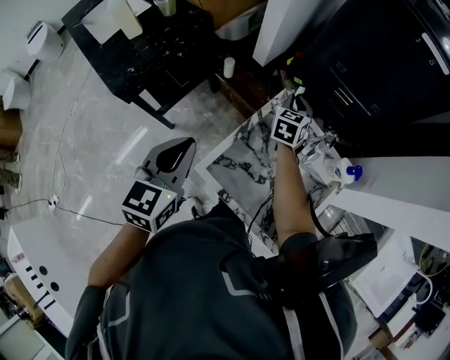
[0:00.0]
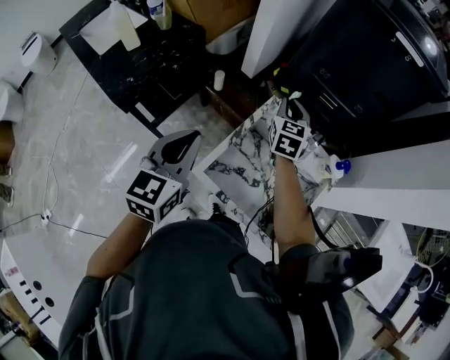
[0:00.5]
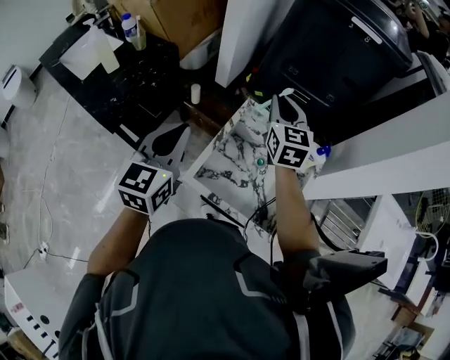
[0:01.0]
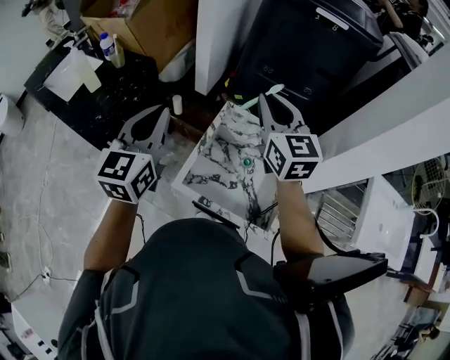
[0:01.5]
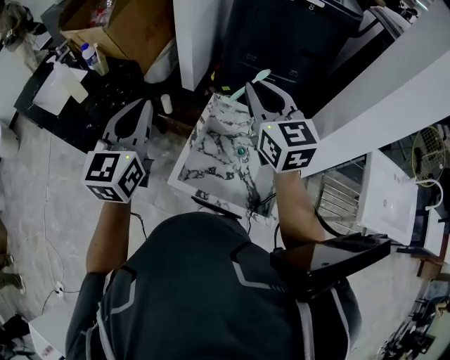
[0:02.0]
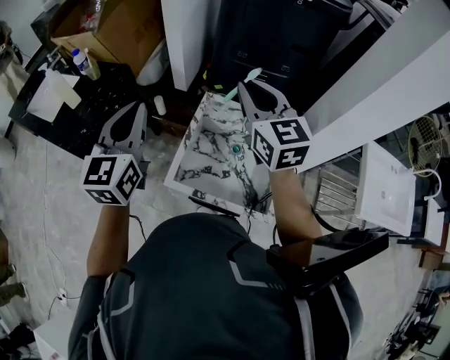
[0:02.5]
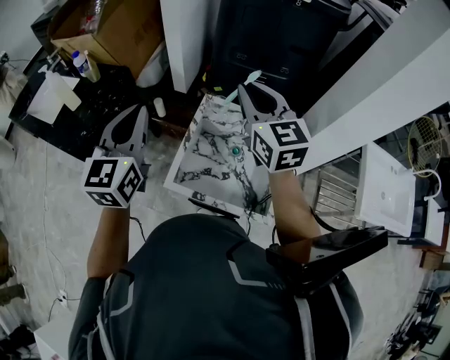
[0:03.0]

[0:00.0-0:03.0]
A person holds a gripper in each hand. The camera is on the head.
0:00.0 to 0:01.5: The left gripper shifts approximately 15 cm upward, and turns by some 20 degrees. Meanwhile the right gripper heads upward and backward, covering about 35 cm, and changes its angle by about 30 degrees.
0:01.5 to 0:03.0: There are only small adjustments of the grippers.

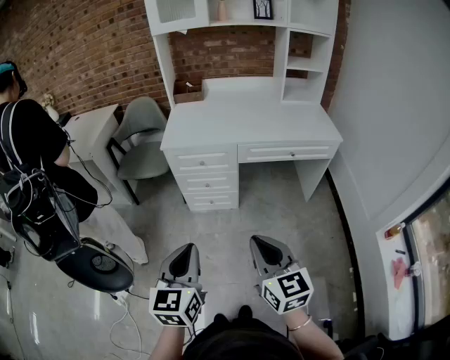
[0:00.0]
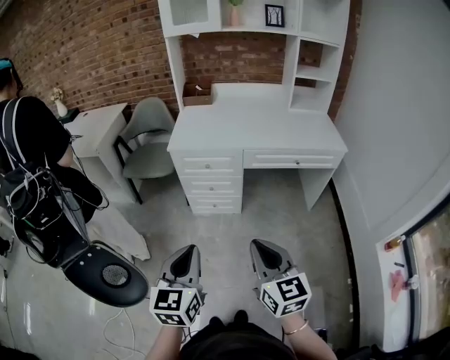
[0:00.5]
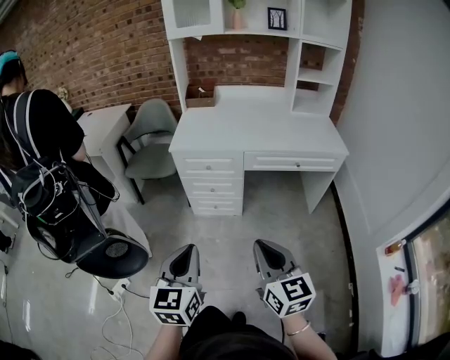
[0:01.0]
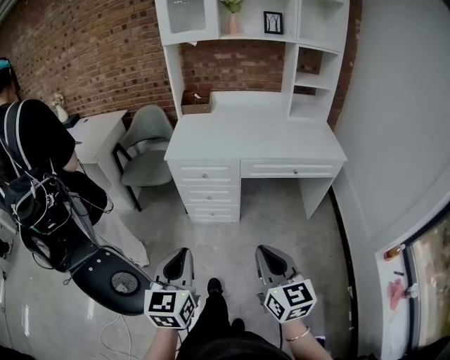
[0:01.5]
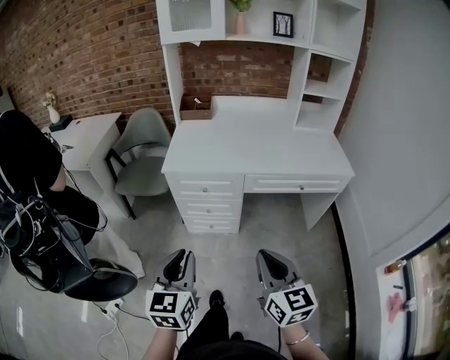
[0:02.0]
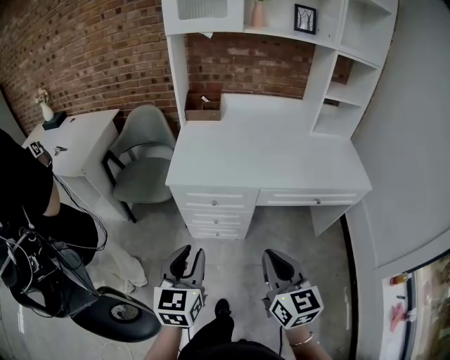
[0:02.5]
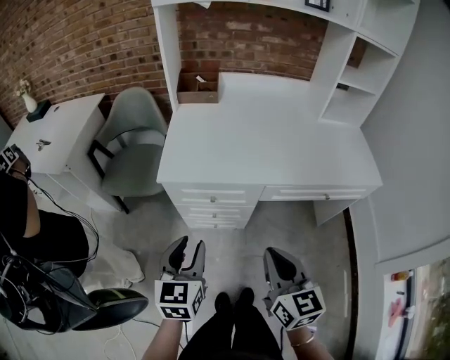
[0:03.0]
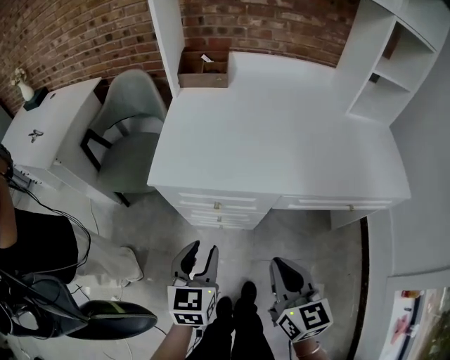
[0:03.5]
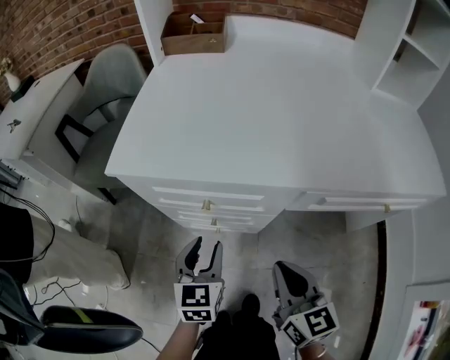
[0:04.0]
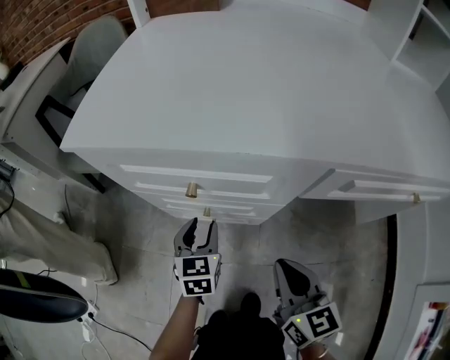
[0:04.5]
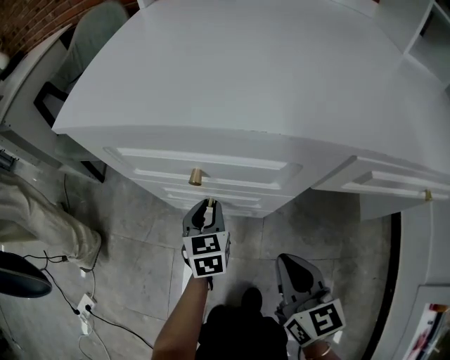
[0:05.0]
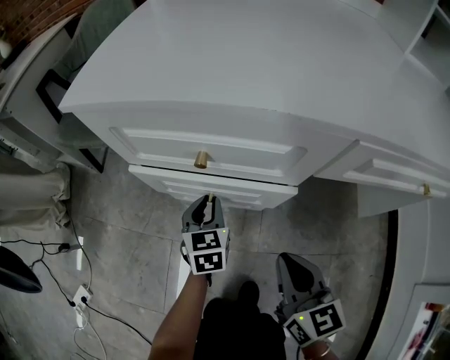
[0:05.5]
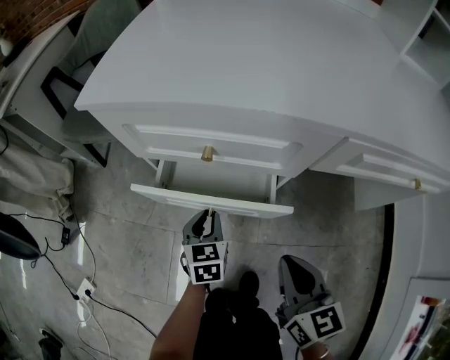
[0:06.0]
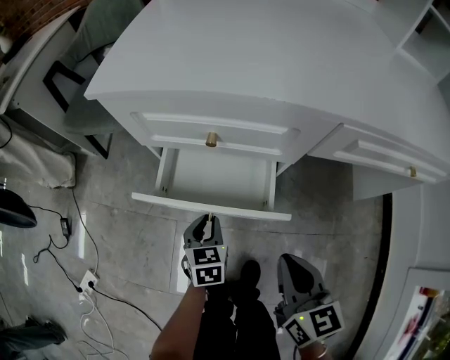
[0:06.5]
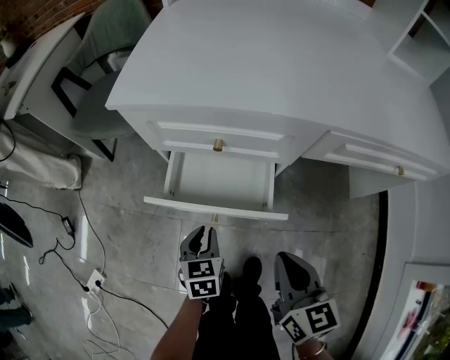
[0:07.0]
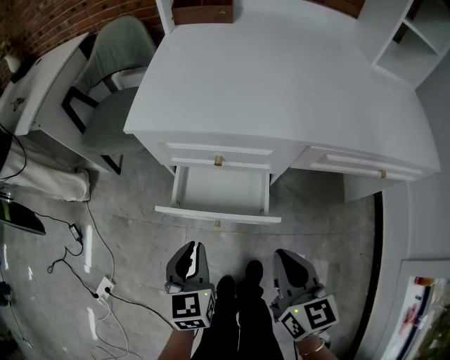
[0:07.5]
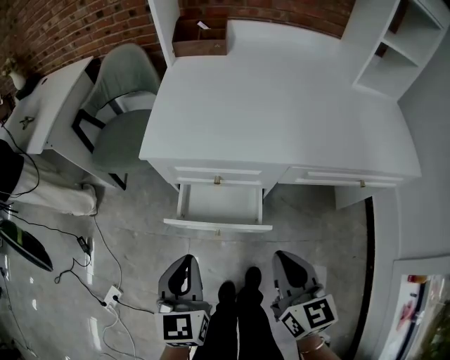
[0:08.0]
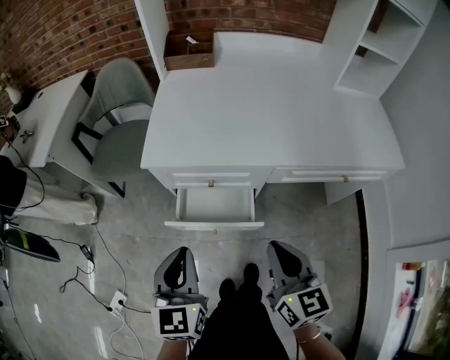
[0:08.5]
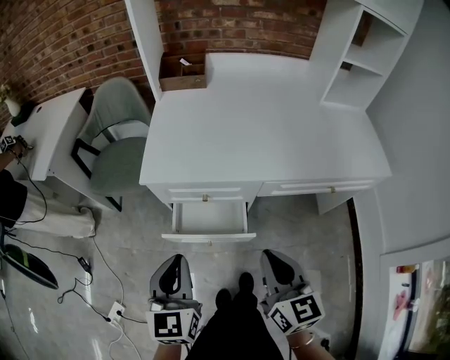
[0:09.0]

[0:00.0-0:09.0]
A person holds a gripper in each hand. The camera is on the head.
0:00.0 to 0:02.0: Both grippers move forward, about 10 cm.
0:02.0 to 0:04.5: Both grippers move downward and forward, roughly 60 cm. The left gripper opens.
0:04.5 to 0:07.0: The right gripper is displaced backward and upward by approximately 10 cm; the left gripper moves backward, approximately 15 cm.
0:07.0 to 0:09.0: The right gripper shifts about 25 cm upward; the left gripper is displaced upward by about 40 cm, and rotates roughly 30 degrees.

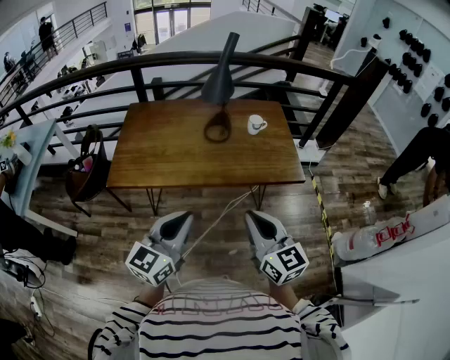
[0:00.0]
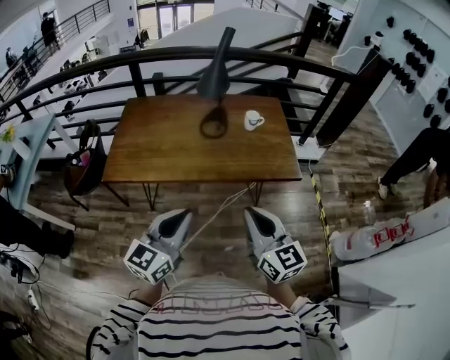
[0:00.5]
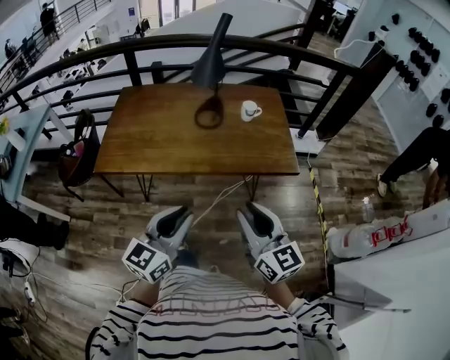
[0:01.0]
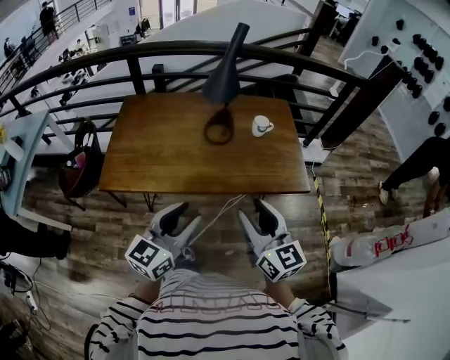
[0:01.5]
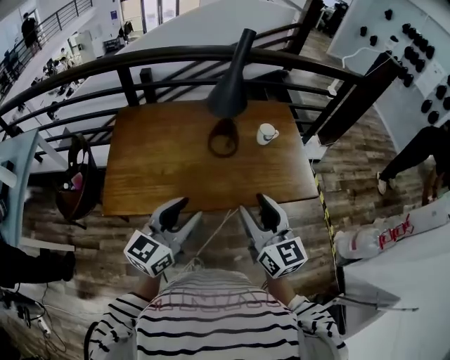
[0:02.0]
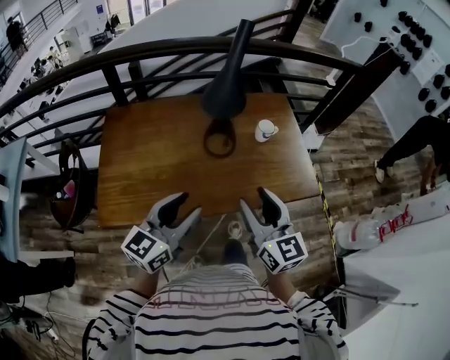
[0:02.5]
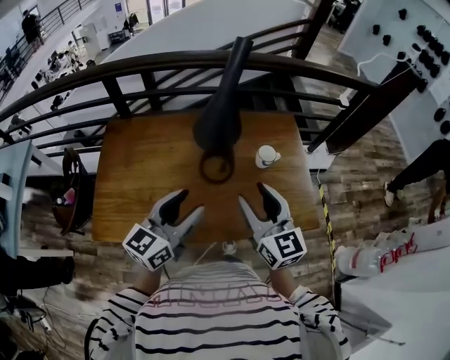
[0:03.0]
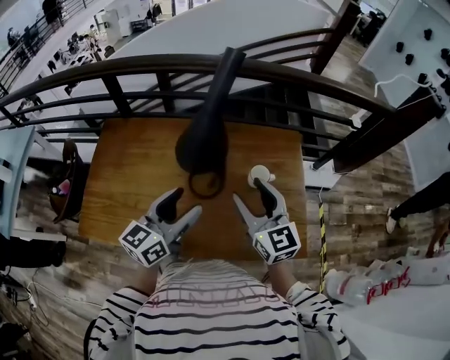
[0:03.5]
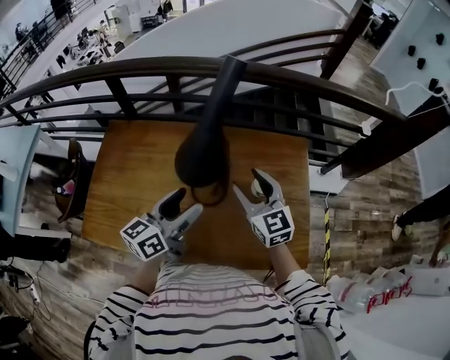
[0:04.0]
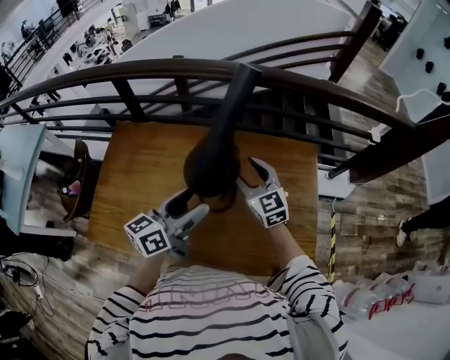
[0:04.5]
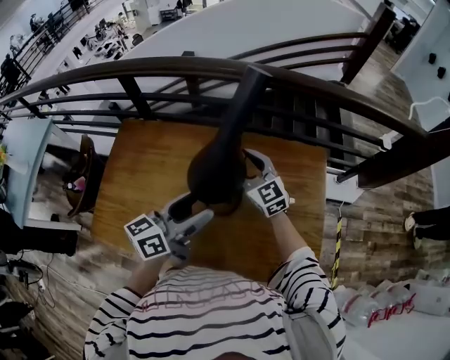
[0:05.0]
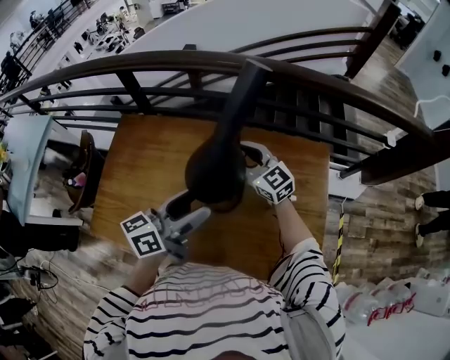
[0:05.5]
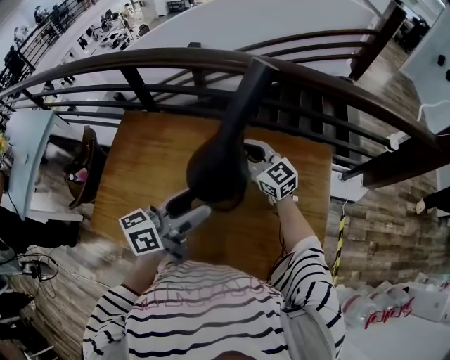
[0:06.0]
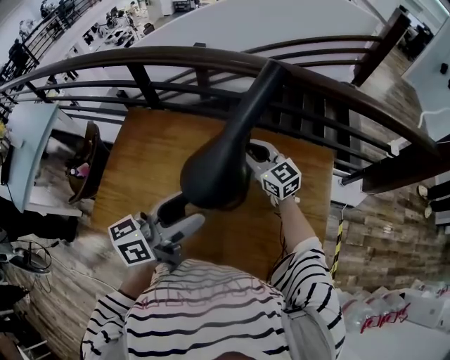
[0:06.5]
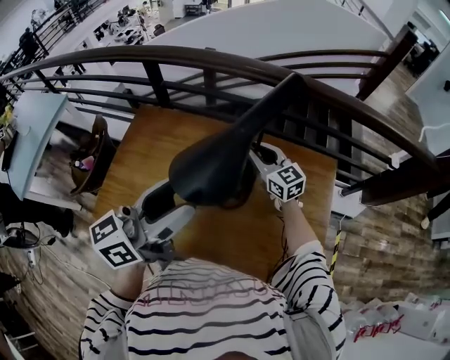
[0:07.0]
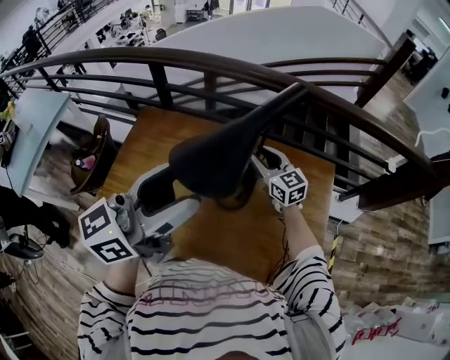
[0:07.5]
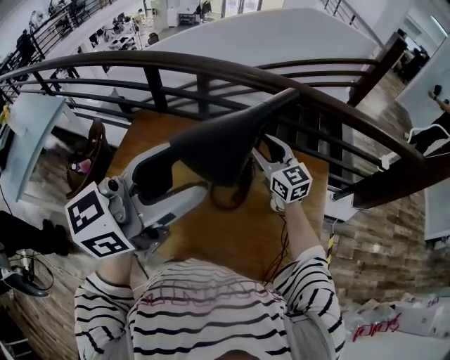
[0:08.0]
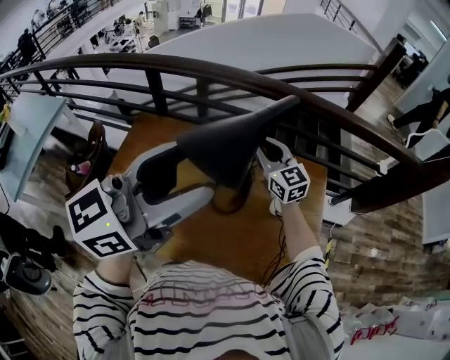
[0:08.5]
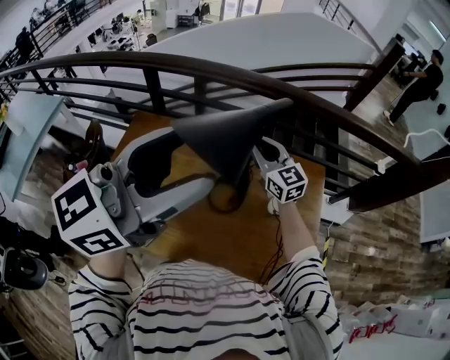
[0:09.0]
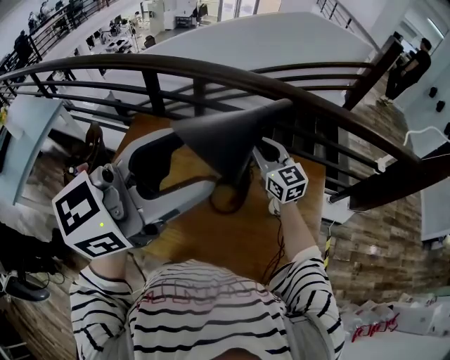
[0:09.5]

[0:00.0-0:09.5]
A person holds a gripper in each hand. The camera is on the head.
0:00.0 to 0:02.0: The left gripper moves forward, about 20 cm, and opens; the right gripper is displaced forward and to the left by about 25 cm, and opens.
0:02.0 to 0:04.0: The grippers both shift forward by roughly 40 cm. The left gripper rotates roughly 30 degrees, and opens up; the right gripper swivels roughly 20 degrees.
0:04.0 to 0:05.5: The left gripper travels forward by approximately 5 cm; the right gripper moves forward and to the left, some 15 cm, swivels roughly 20 degrees, and closes its fingers.
0:05.5 to 0:07.5: The left gripper goes some 20 cm upward and to the left, and rotates roughly 20 degrees.
0:07.5 to 0:09.5: The two grippers go some 10 cm upward.

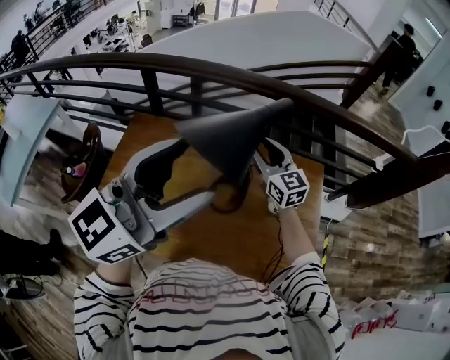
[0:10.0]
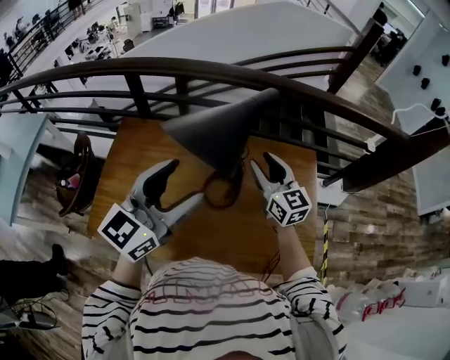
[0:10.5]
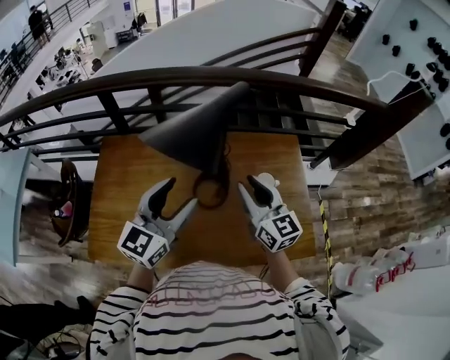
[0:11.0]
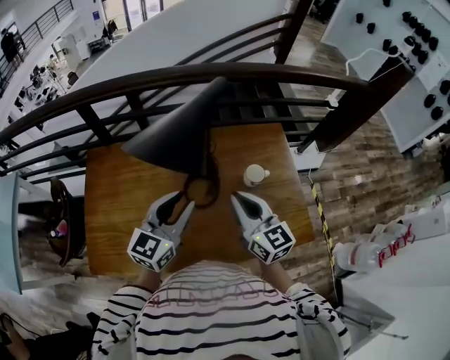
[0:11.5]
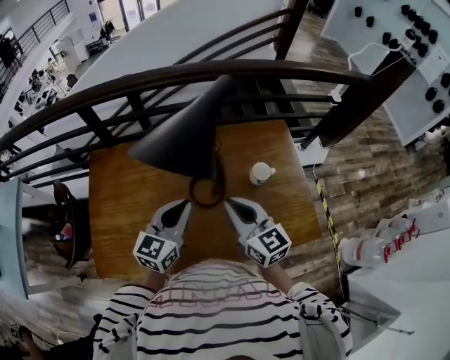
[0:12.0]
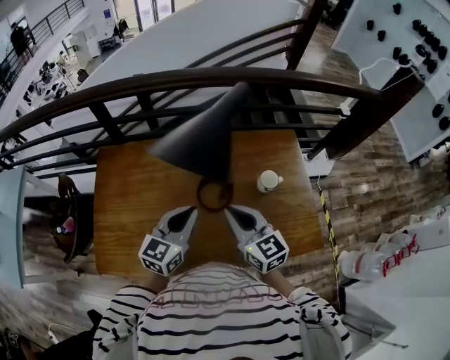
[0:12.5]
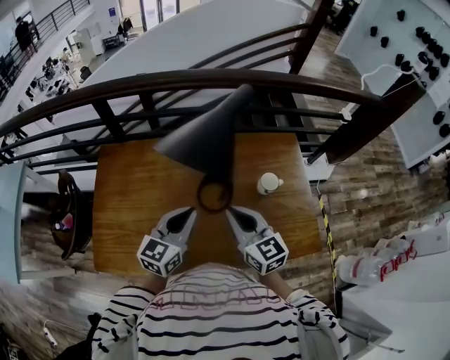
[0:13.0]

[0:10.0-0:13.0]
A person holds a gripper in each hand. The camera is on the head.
0:10.0 to 0:11.5: The right gripper shifts some 20 cm backward, turns by some 20 degrees, and closes. Meanwhile the left gripper is displaced downward by roughly 25 cm, and closes.
0:11.5 to 0:13.0: The right gripper travels to the left by about 5 cm, while the left gripper changes place by about 5 cm, and closes.

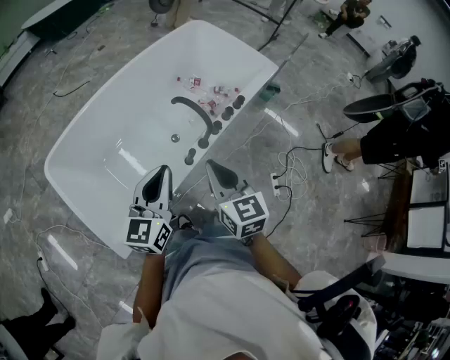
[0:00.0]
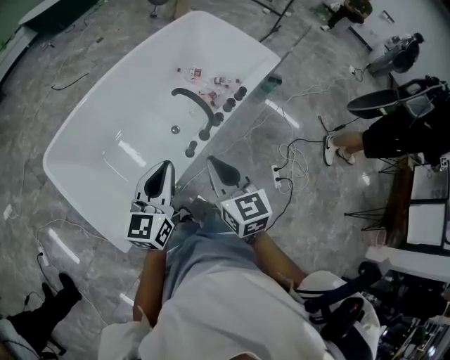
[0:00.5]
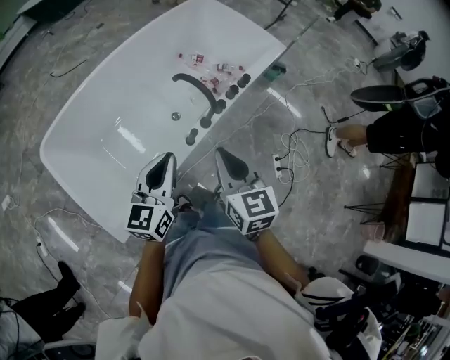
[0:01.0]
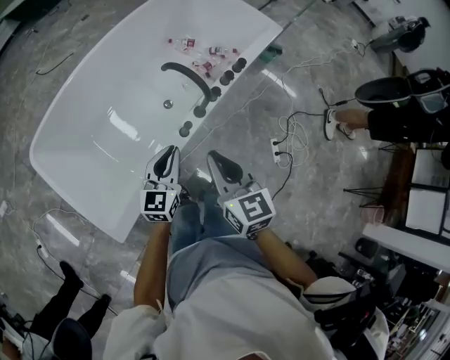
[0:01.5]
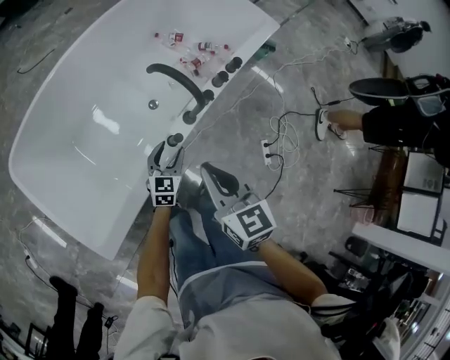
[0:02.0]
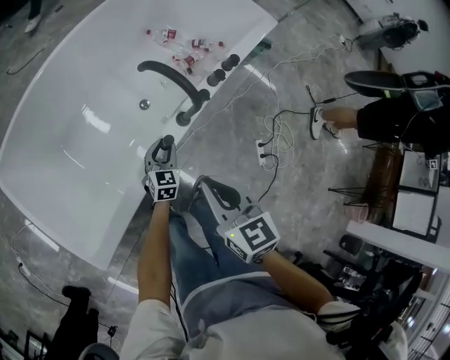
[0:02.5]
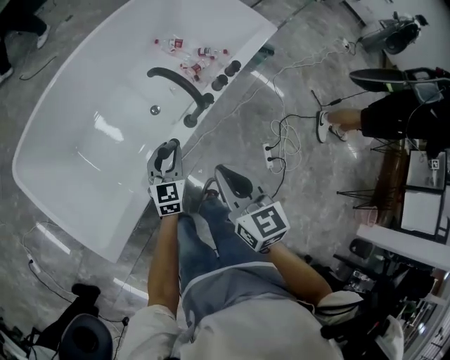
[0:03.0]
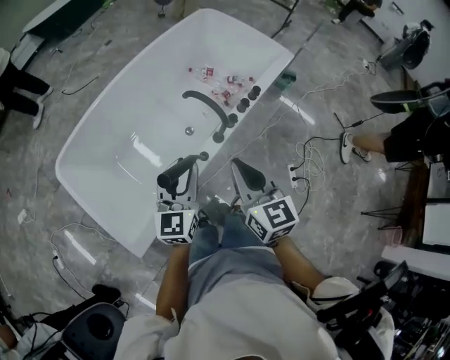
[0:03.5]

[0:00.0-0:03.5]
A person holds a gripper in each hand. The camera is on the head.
0:00.0 to 0:02.0: The right gripper moves downward and forward, some 30 cm. The left gripper travels downward by some 50 cm, rotates approximately 20 degrees, and opens.
0:02.0 to 0:03.5: The right gripper is displaced upward by approximately 20 cm; the left gripper heads upward, covering approximately 40 cm, turns by approximately 20 degrees, and closes up.
